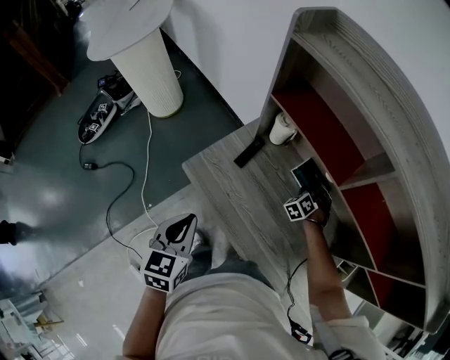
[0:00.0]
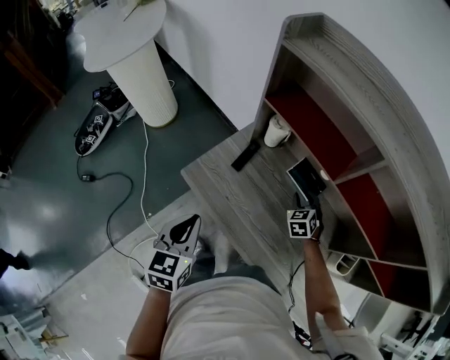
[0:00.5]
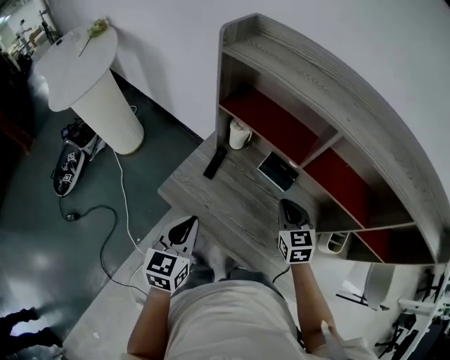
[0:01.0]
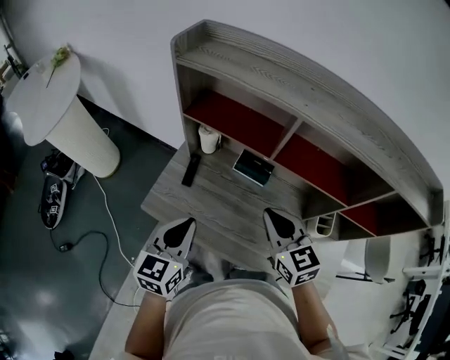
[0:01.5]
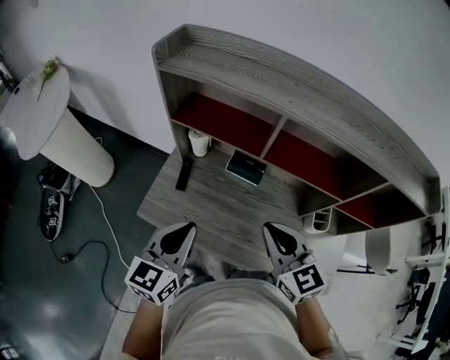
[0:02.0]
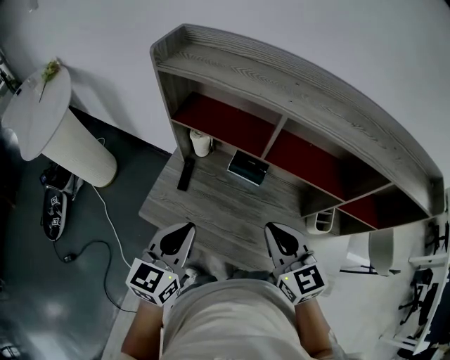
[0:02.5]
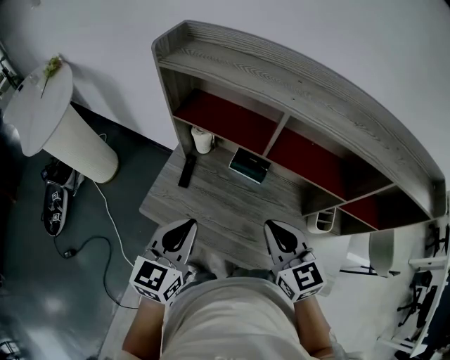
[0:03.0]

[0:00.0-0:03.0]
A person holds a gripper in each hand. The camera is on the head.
0:00.0 to 0:01.5: The right gripper moves upward and backward, about 40 cm, turns by about 60 degrees, and closes up; the left gripper goes about 10 cm to the right, upward and forward, and rotates roughly 30 degrees.
0:01.5 to 0:03.0: The grippers move only a little.

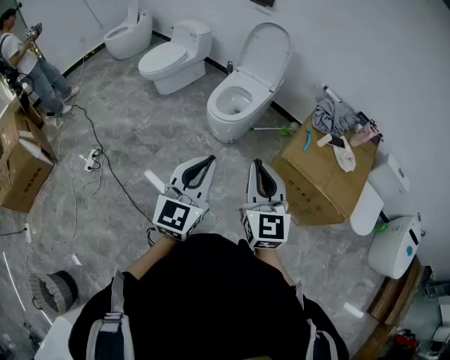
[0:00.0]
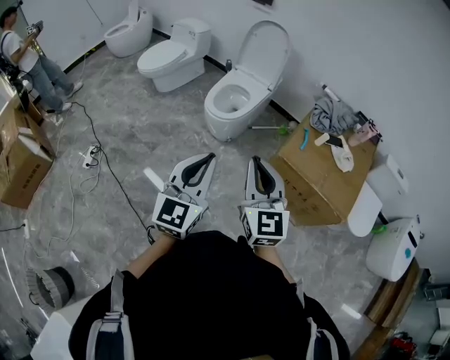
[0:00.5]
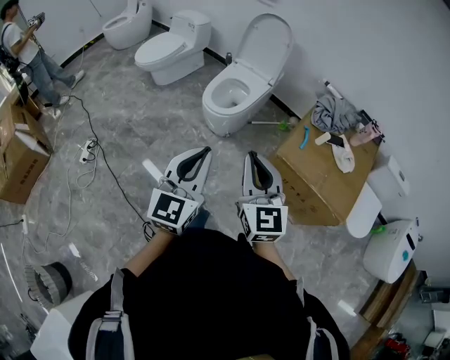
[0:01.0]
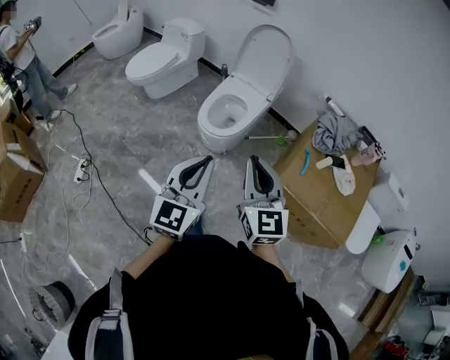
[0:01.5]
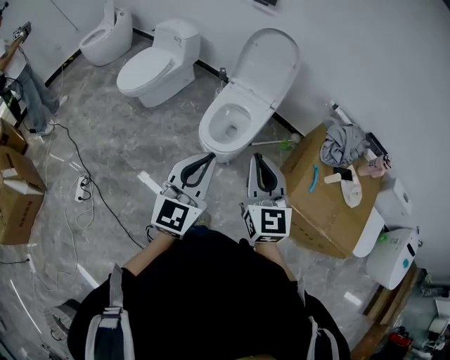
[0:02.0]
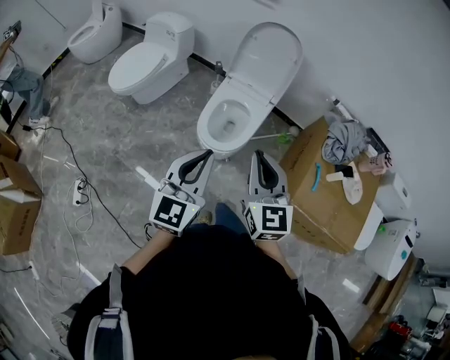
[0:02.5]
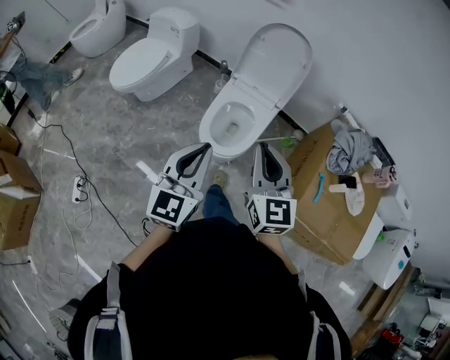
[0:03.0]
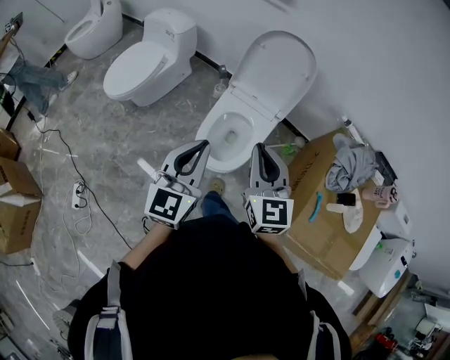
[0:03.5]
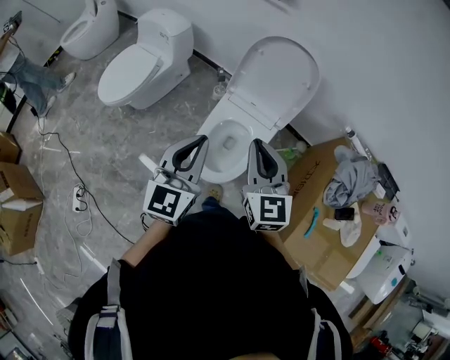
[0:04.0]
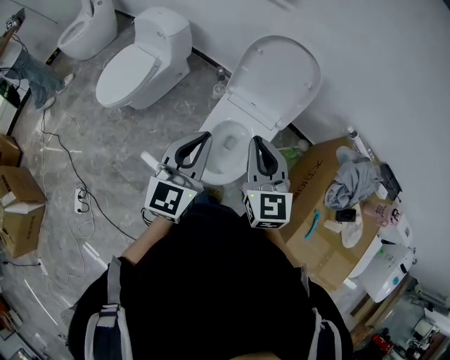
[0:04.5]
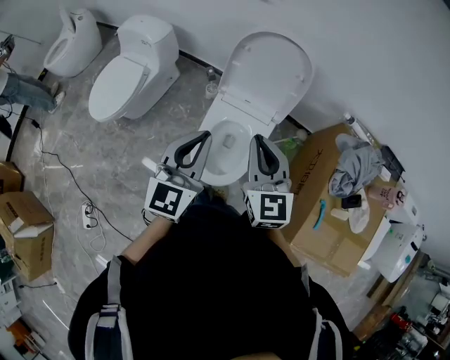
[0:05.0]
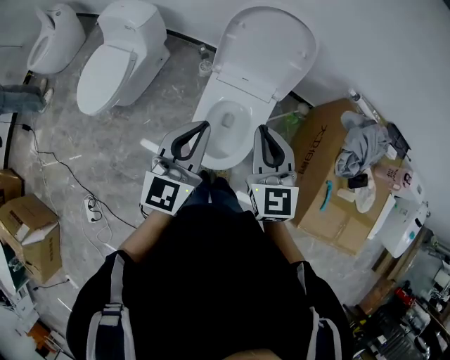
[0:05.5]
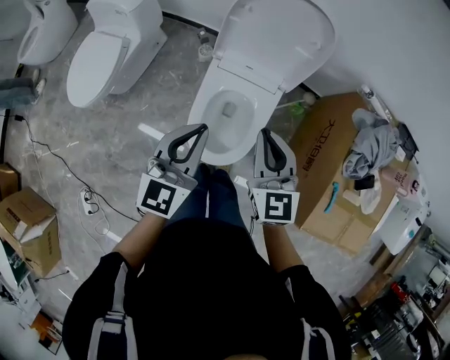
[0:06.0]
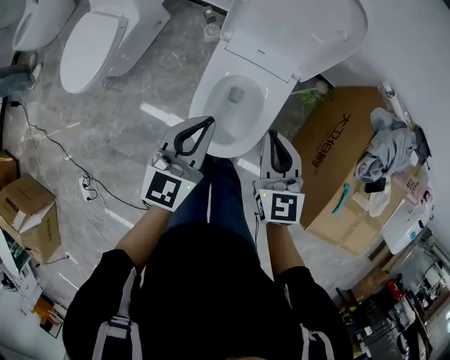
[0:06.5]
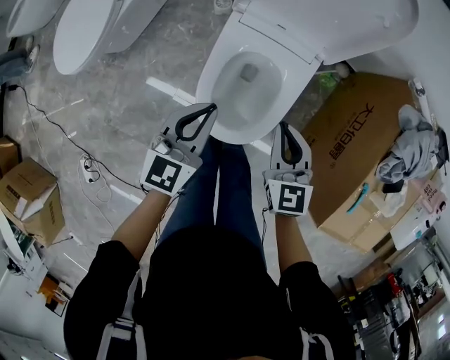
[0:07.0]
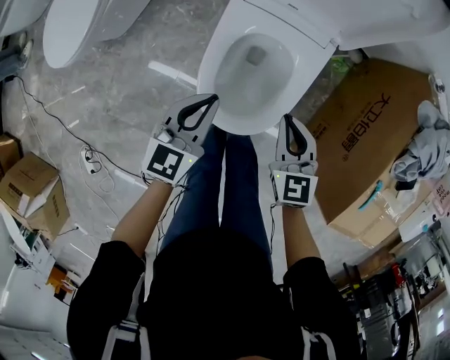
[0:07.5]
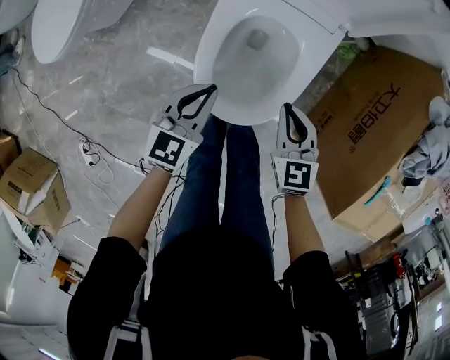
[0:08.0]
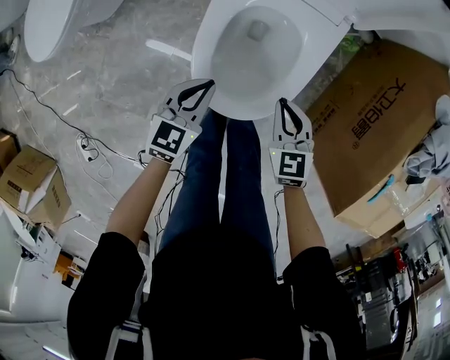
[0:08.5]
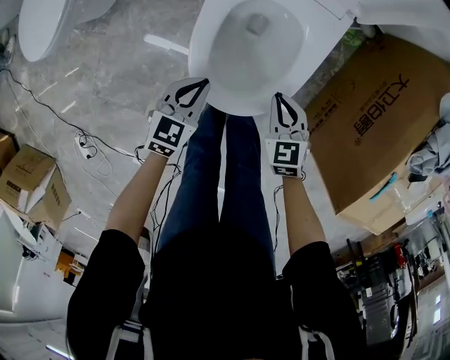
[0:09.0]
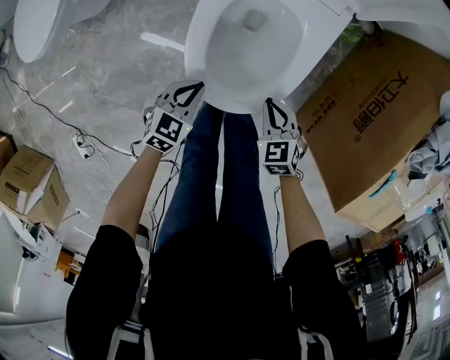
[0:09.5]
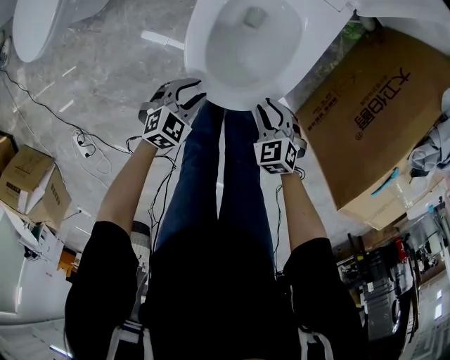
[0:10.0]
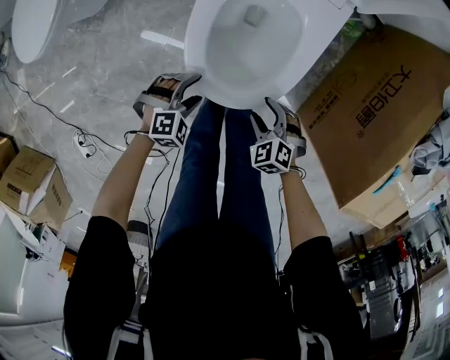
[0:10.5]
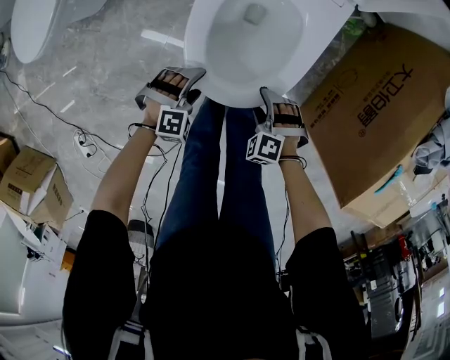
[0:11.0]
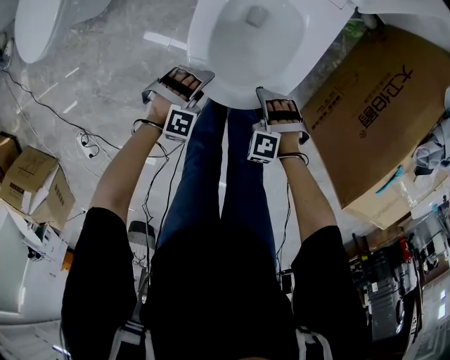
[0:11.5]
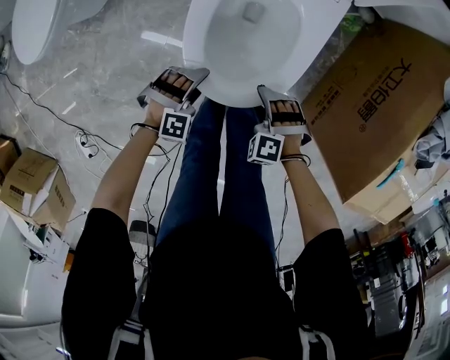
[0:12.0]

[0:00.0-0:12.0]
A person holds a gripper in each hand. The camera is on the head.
0:00.0 to 0:02.0: The grippers both shift forward by approximately 30 cm.
0:02.0 to 0:04.0: The two grippers go approximately 35 cm forward.
0:04.0 to 0:06.0: The two grippers go about 15 cm downward and forward.
0:06.0 to 0:08.0: The grippers both shift downward by roughly 30 cm. The right gripper swivels about 20 degrees.
0:08.0 to 0:10.0: Both grippers travel together downward and backward, roughly 20 cm. The right gripper swivels roughly 30 degrees; the left gripper swivels approximately 40 degrees, and opens up.
0:10.0 to 0:12.0: The left gripper rolls clockwise, seen from behind, by about 50 degrees, and opens up. Meanwhile the right gripper twists some 40 degrees counterclockwise, seen from behind, and opens its fingers.

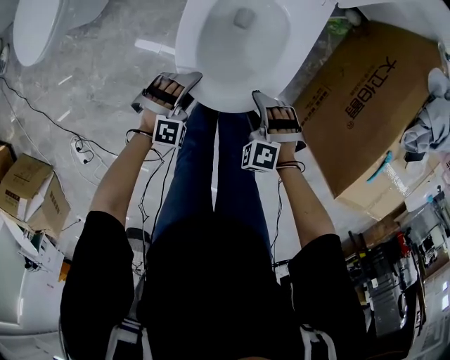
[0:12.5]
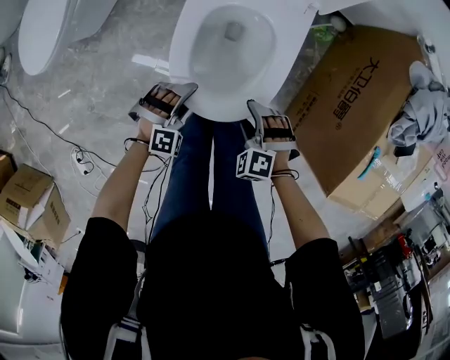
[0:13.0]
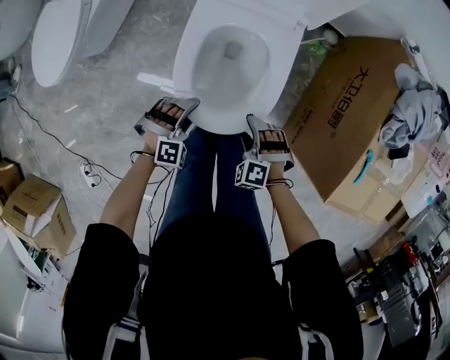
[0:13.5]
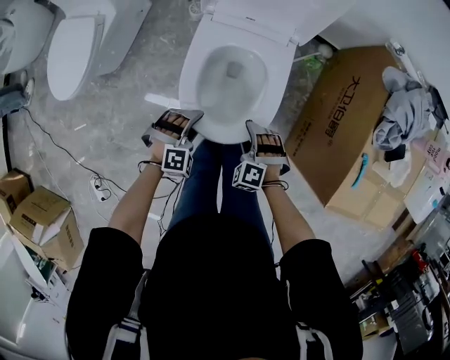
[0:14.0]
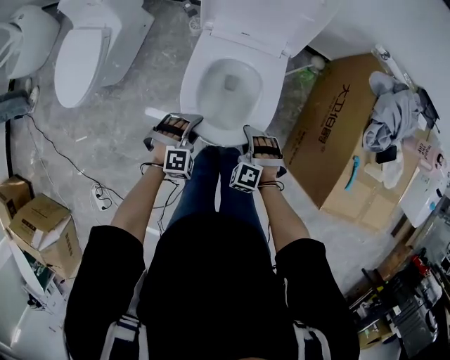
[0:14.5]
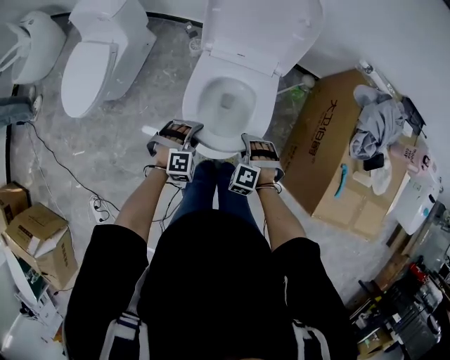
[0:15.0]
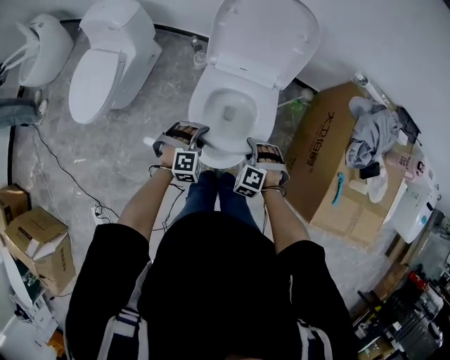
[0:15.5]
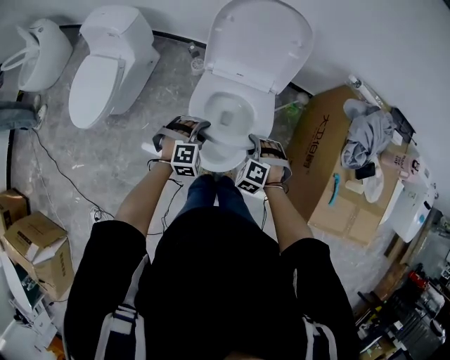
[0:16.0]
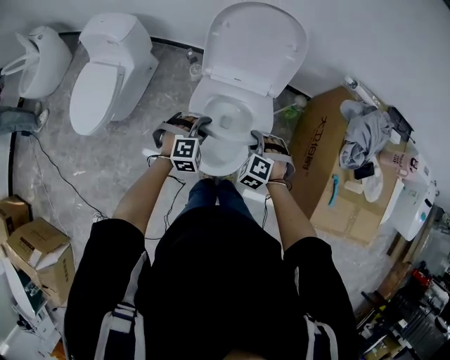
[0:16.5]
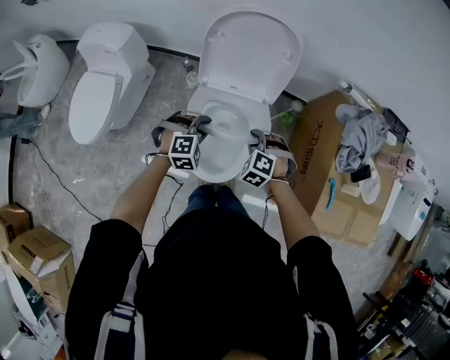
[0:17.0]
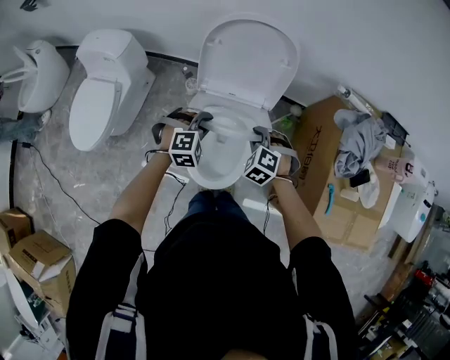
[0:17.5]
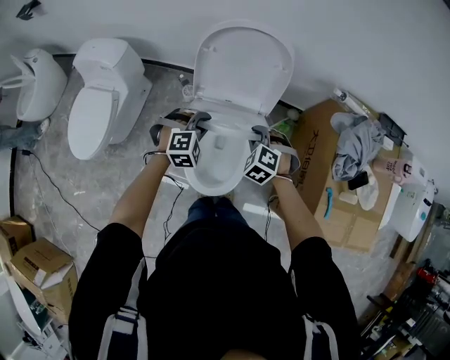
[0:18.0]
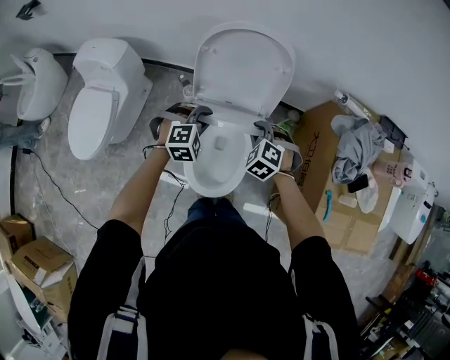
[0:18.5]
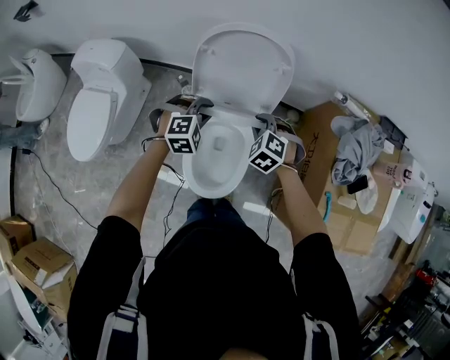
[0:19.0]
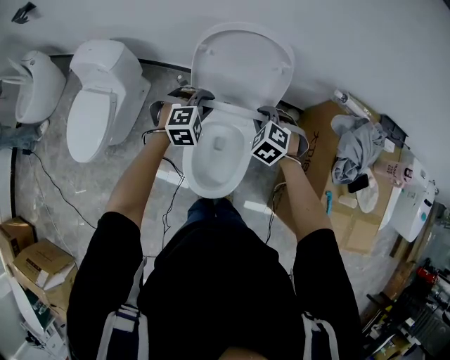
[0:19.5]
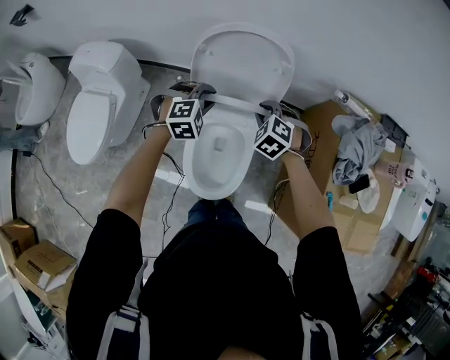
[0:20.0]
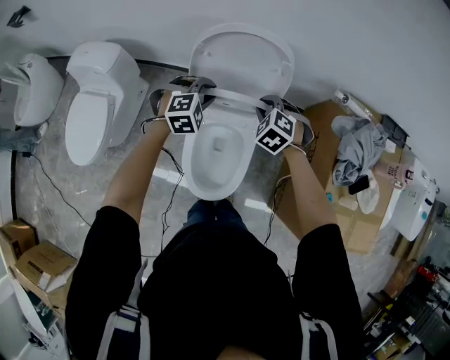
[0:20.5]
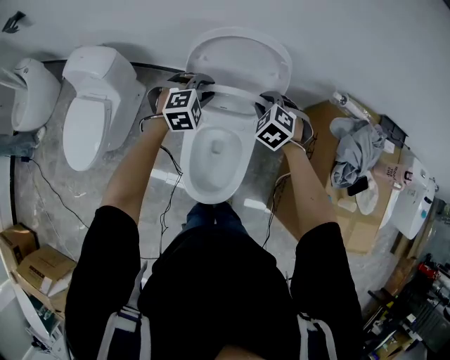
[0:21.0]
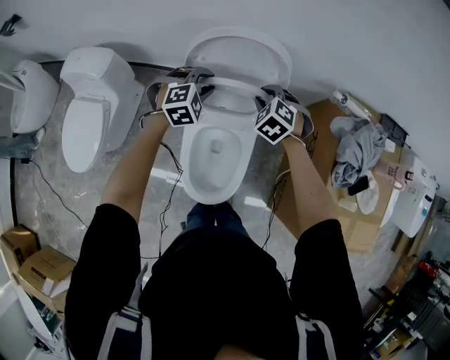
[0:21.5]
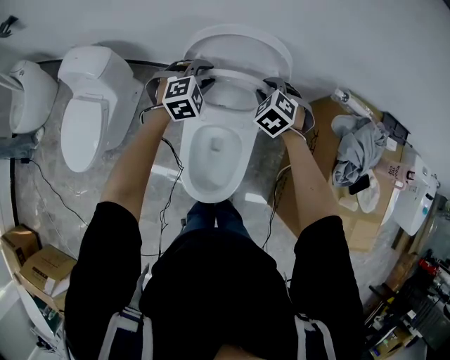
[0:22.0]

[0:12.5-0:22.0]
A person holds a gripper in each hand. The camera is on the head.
0:12.5 to 0:14.5: The right gripper moves upward and forward, about 10 cm, and closes its fingers. The left gripper is displaced upward by approximately 15 cm, and closes its fingers.
0:14.5 to 0:16.5: Both grippers move upward and forward, roughly 15 cm.
0:16.5 to 0:18.0: The grippers both shift forward and upward by about 10 cm.
0:18.0 to 0:20.0: Both grippers travel together forward, approximately 10 cm.
0:20.0 to 0:22.0: The grippers both shift forward by some 10 cm.

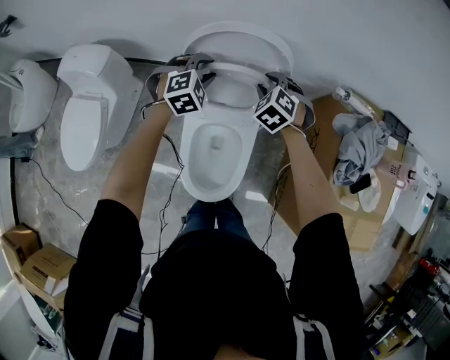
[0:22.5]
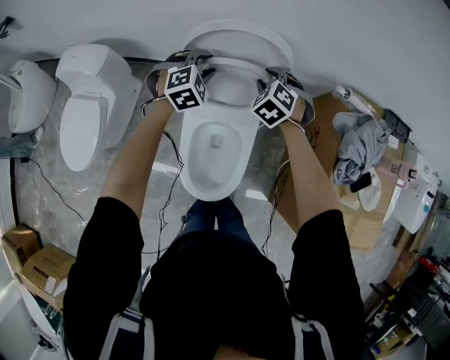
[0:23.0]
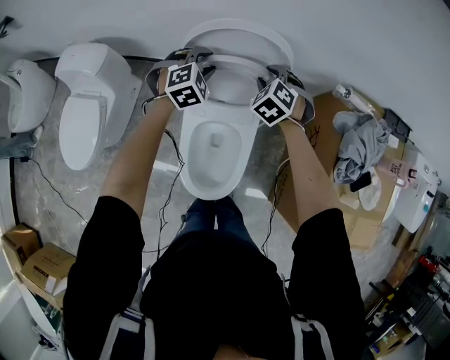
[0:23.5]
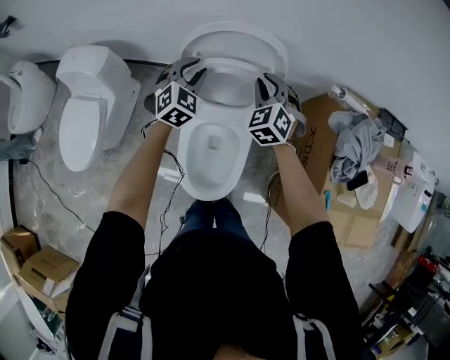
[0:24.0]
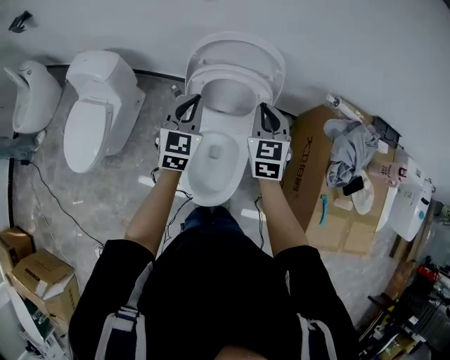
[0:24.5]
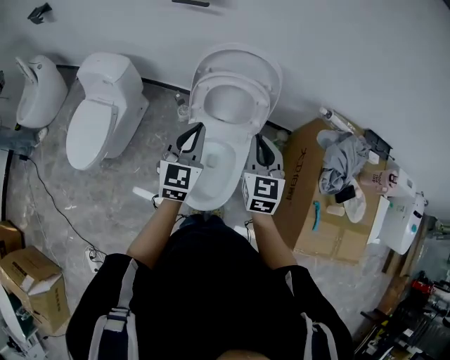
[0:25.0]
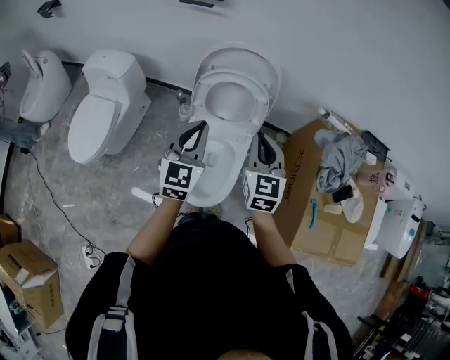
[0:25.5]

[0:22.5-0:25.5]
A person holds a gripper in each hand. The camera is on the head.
0:22.5 to 0:24.0: The right gripper goes approximately 5 cm upward, and rotates some 20 degrees; the left gripper swivels approximately 30 degrees.
0:24.0 to 0:25.5: Both grippers move backward and upward, about 25 cm. The right gripper turns by roughly 40 degrees; the left gripper turns by some 40 degrees.
